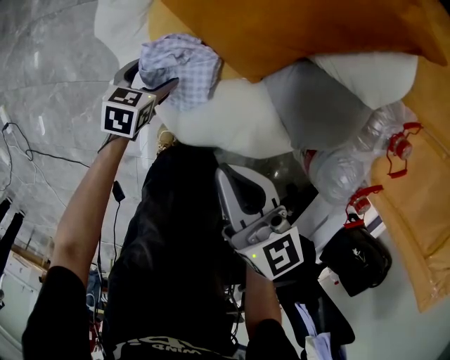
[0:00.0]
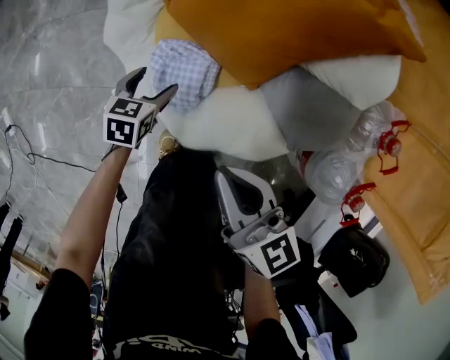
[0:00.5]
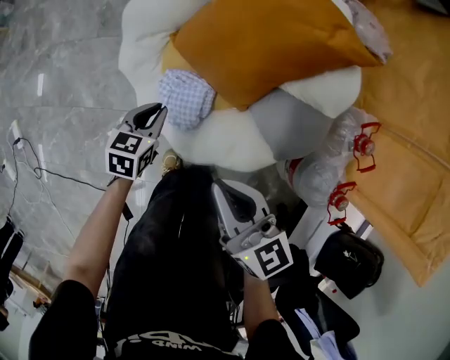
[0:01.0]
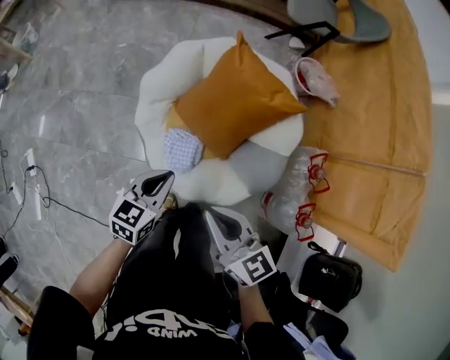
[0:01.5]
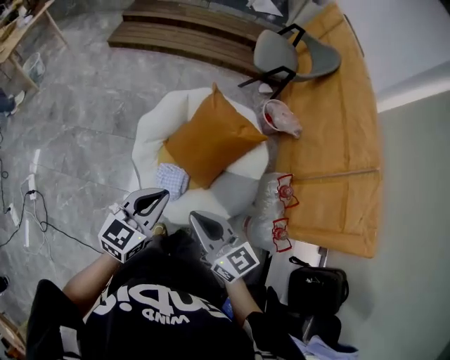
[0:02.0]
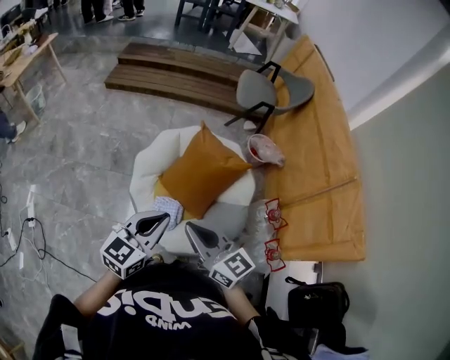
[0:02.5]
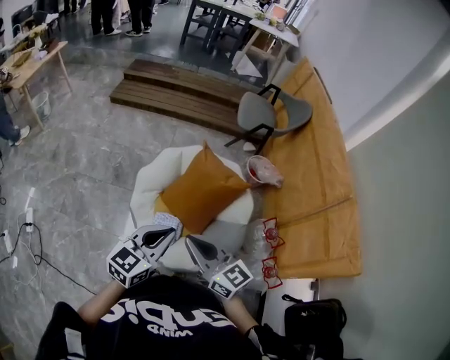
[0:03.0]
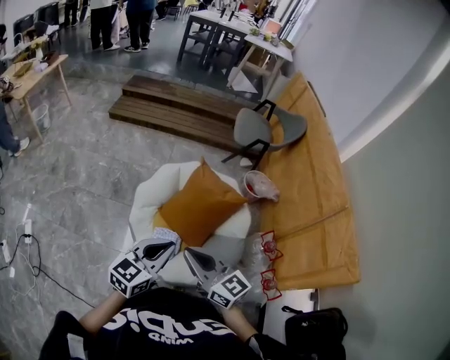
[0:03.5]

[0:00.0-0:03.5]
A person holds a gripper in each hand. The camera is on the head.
0:00.0 to 0:02.0: The right gripper goes roughly 50 cm upward, and swivels about 20 degrees; the left gripper is displaced upward by some 70 cm, angles its fingers upward, by roughly 40 degrees, and closes its fingers.
0:02.0 to 0:03.5: The left gripper moves upward and backward, about 10 cm, while the right gripper travels upward by about 5 cm.

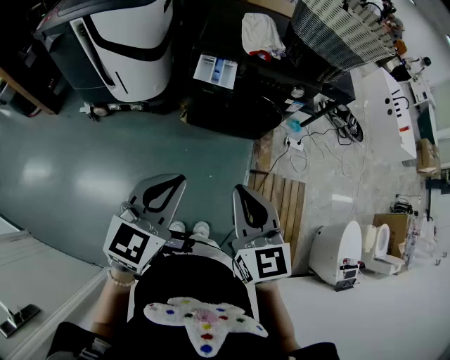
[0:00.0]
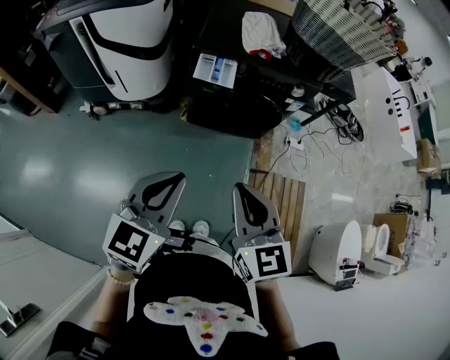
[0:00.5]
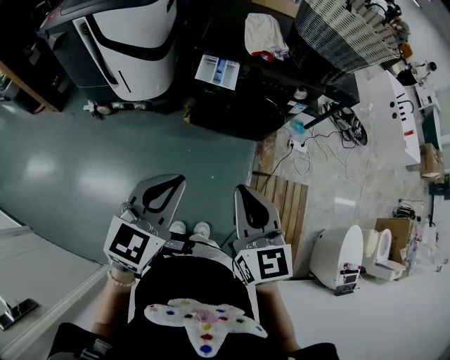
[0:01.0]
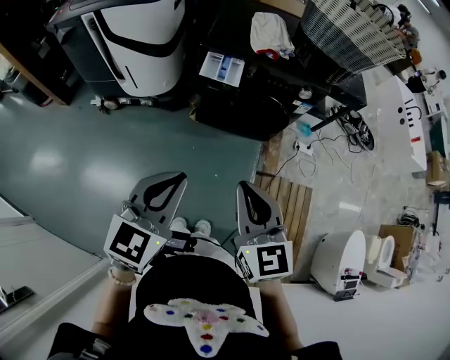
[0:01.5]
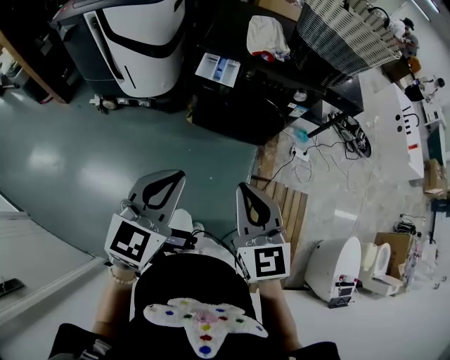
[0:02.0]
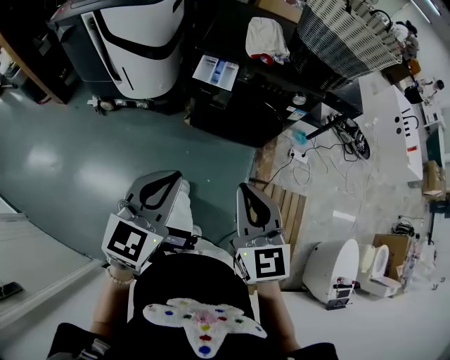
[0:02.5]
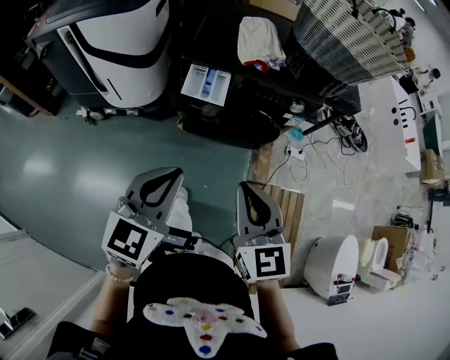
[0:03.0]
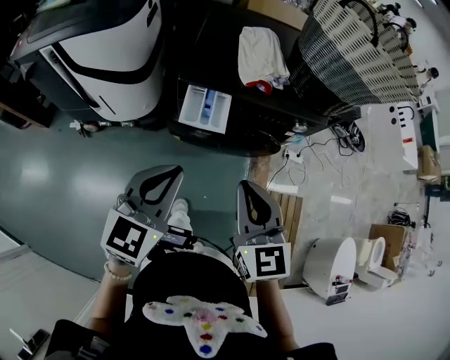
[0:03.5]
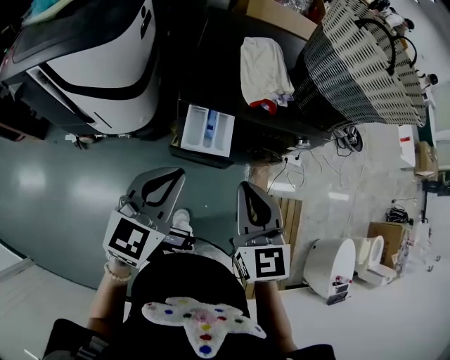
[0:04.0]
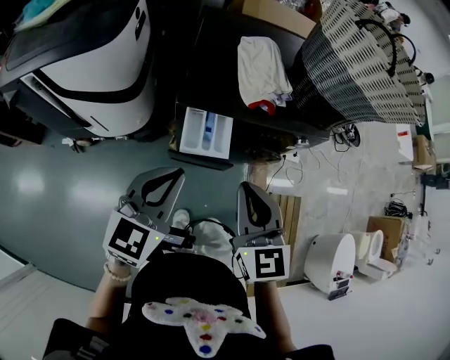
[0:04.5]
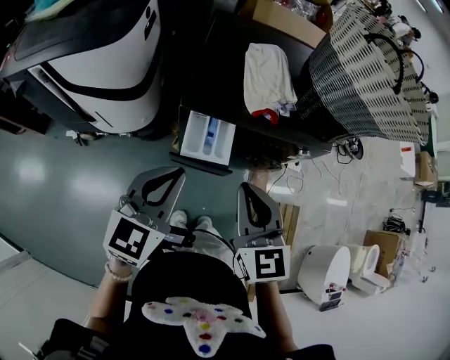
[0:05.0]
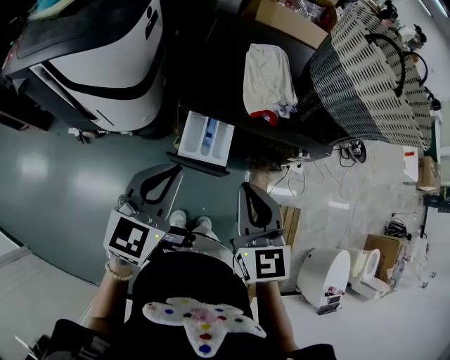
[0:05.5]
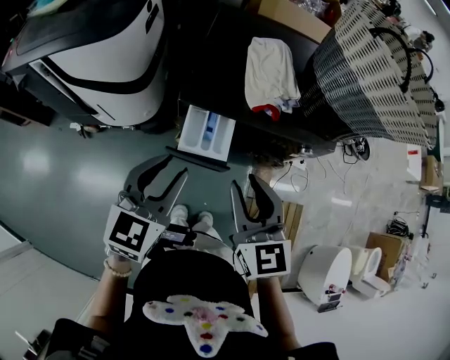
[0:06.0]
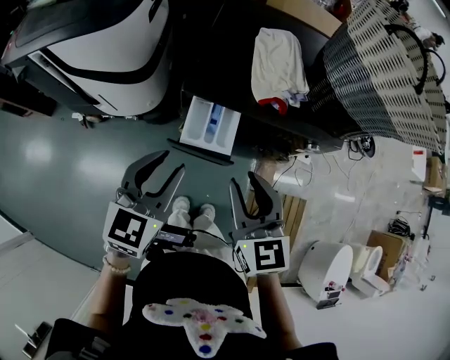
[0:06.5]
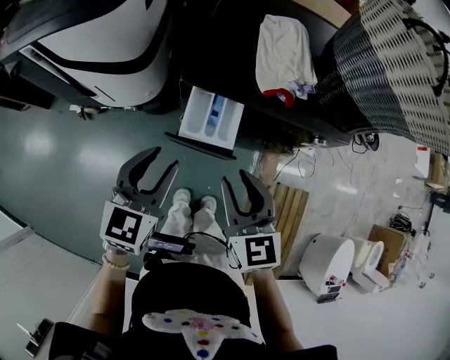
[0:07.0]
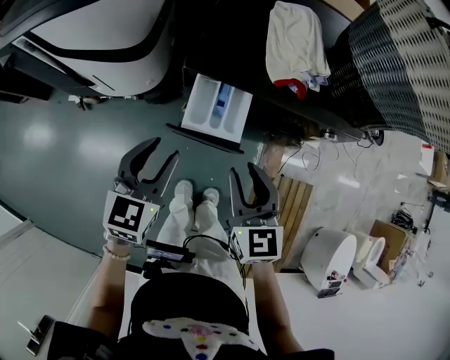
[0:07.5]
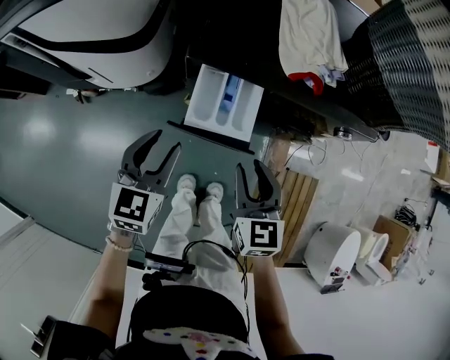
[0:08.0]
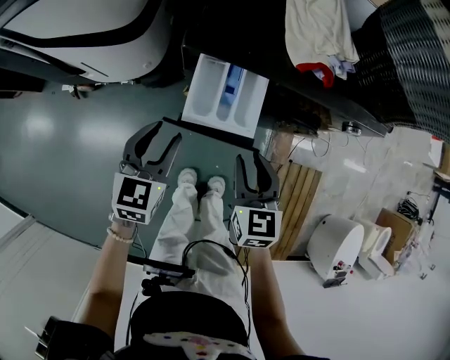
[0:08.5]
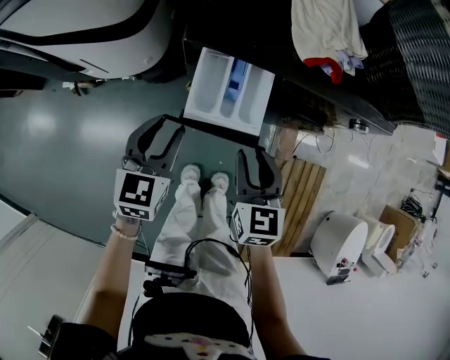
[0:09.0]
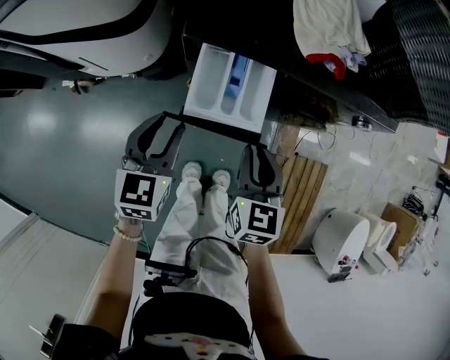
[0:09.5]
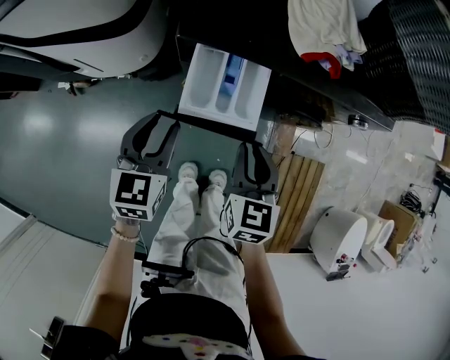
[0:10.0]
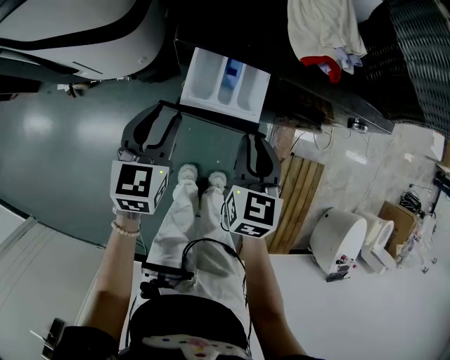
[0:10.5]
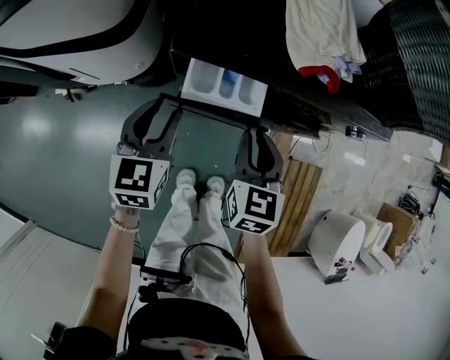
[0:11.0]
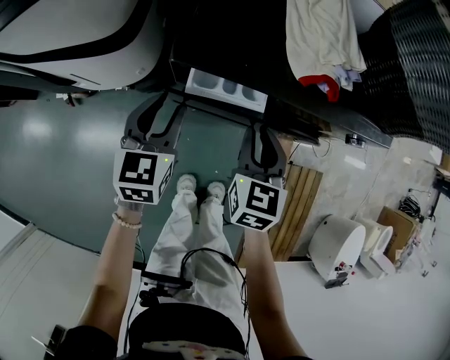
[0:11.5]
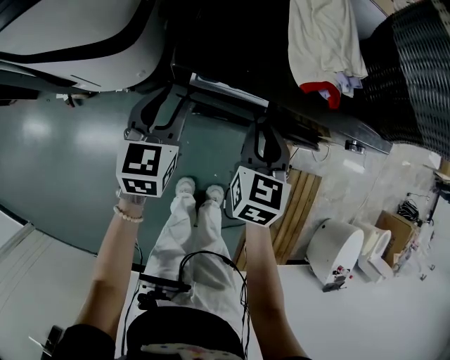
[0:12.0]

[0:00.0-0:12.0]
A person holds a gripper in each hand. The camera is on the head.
0:00.0 to 0:02.0: The right gripper shifts approximately 5 cm to the right.
0:02.0 to 0:04.0: The two grippers go about 30 cm forward.
0:04.0 to 0:06.0: The left gripper opens up; the right gripper opens.
0:06.0 to 0:08.0: Both grippers move downward, roughly 20 cm.
0:08.0 to 0:10.0: Both grippers move downward, approximately 5 cm.
0:10.0 to 0:12.0: The grippers both shift forward by about 10 cm.

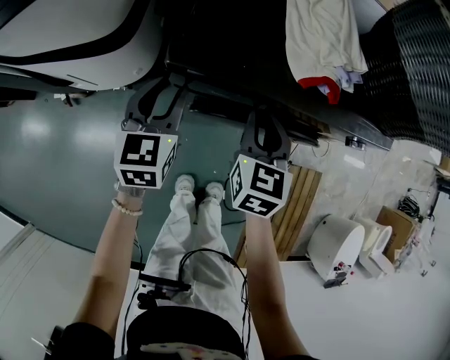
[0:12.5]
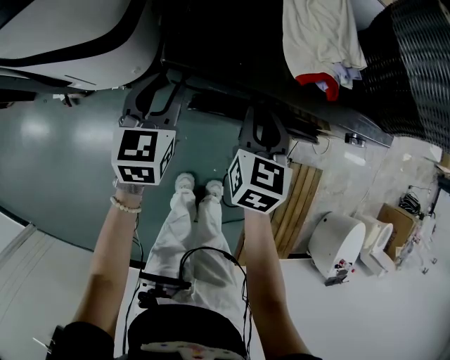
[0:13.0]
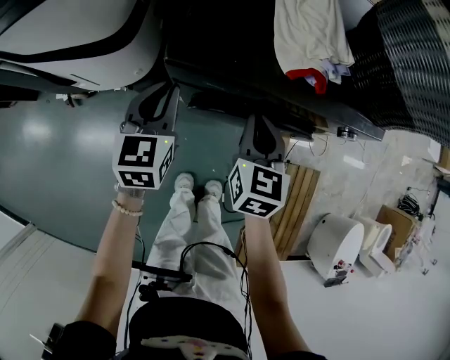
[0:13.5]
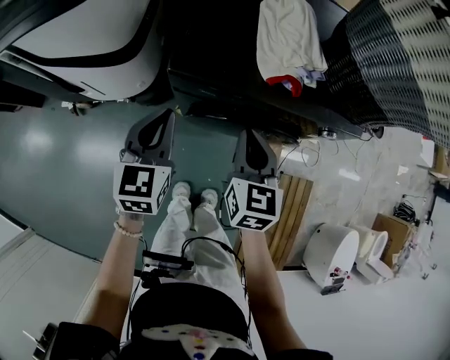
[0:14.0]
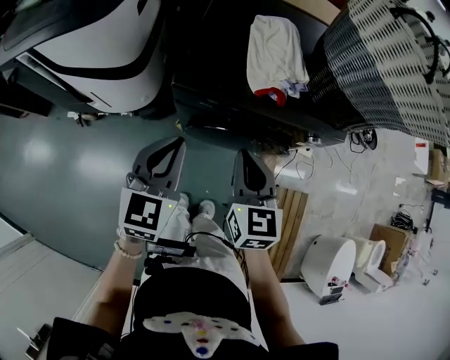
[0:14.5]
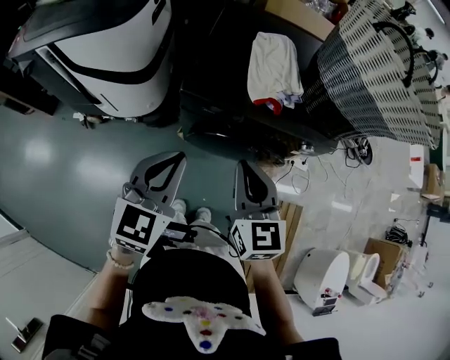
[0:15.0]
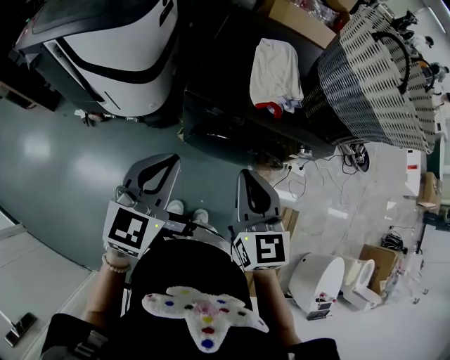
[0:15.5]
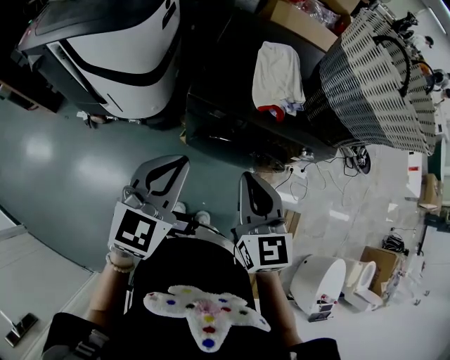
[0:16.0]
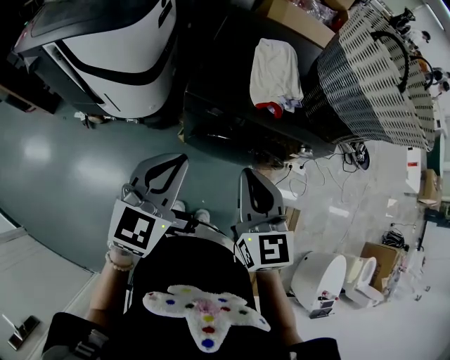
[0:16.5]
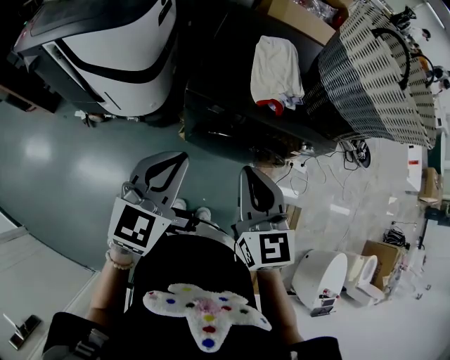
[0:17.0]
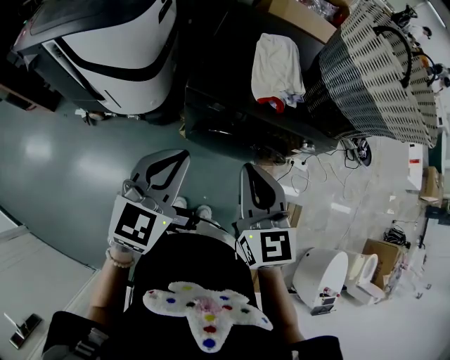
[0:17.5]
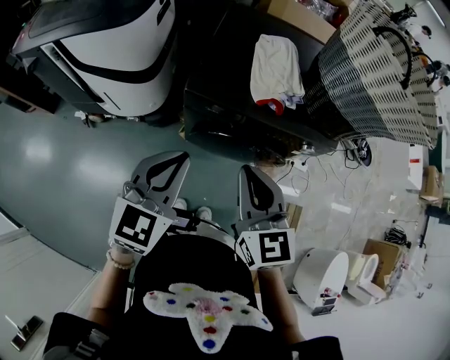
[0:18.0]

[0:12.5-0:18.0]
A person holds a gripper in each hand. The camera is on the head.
0:12.5 to 0:14.5: The left gripper travels upward, backward and to the right by approximately 25 cm, and closes. Meanwhile the right gripper shifts some 20 cm upward and backward.
0:14.5 to 0:16.0: Both grippers move upward and backward, roughly 10 cm.
0:16.0 to 0:18.0: The two grippers keep their place.

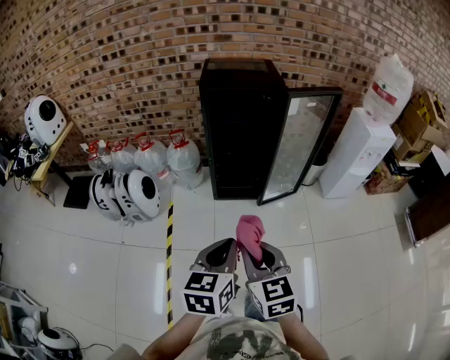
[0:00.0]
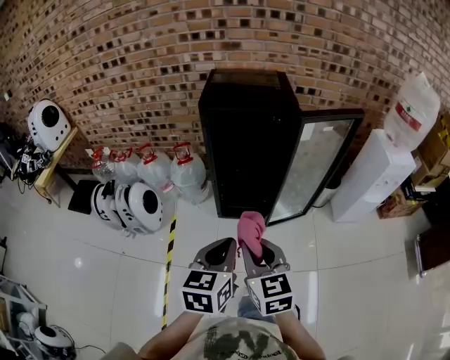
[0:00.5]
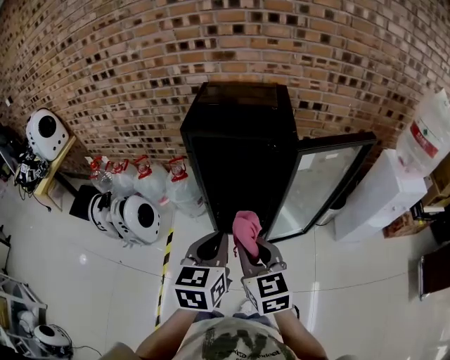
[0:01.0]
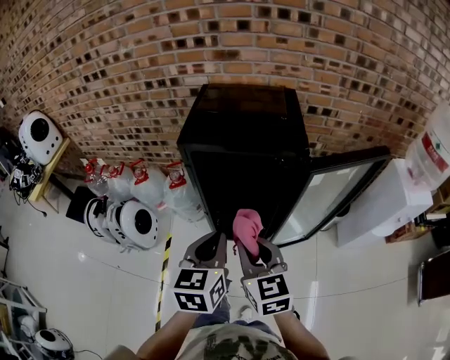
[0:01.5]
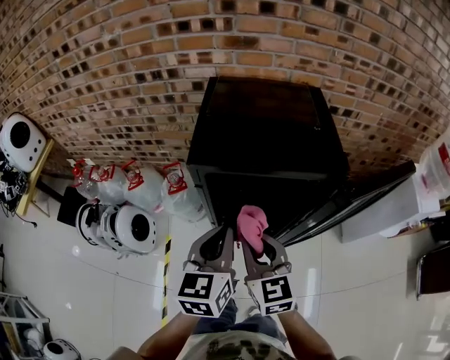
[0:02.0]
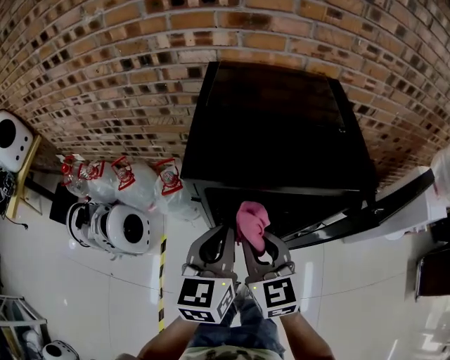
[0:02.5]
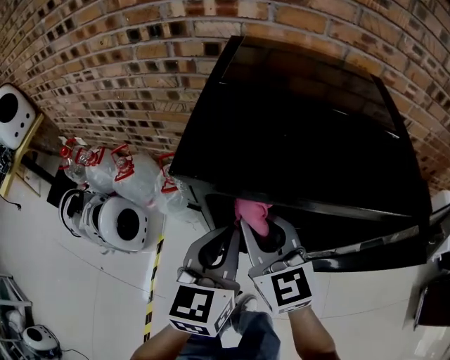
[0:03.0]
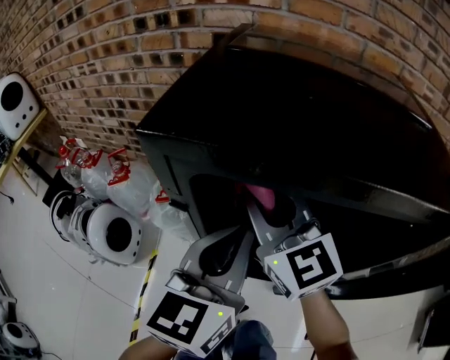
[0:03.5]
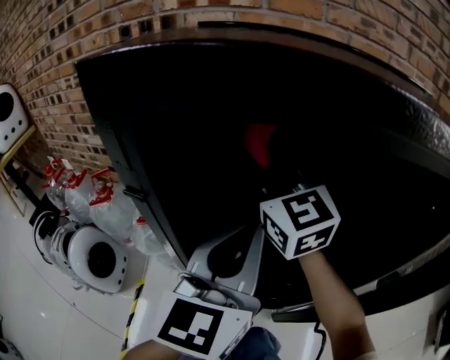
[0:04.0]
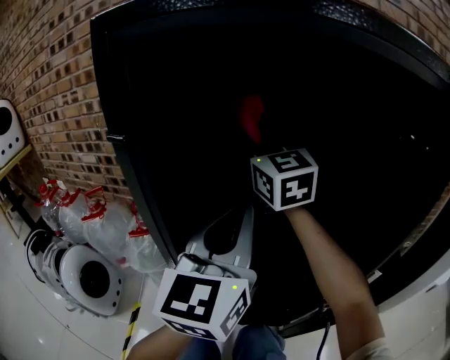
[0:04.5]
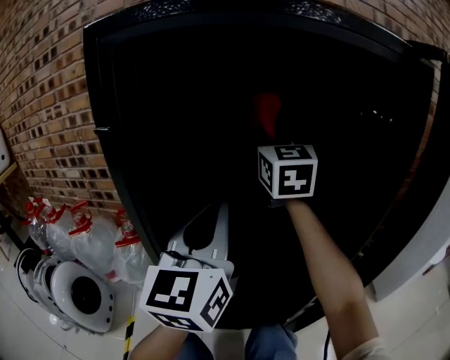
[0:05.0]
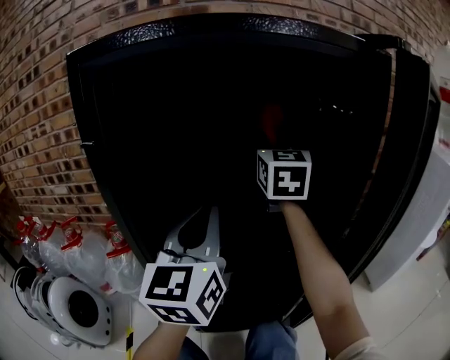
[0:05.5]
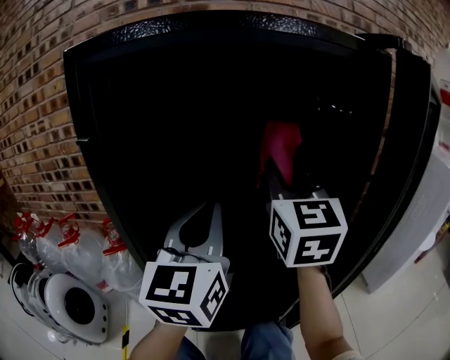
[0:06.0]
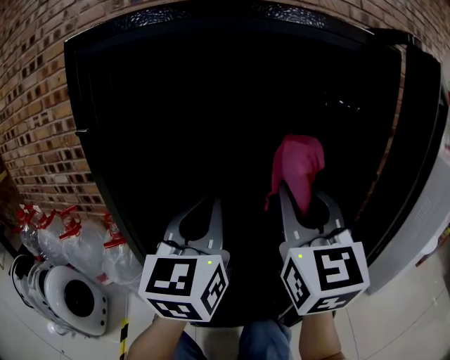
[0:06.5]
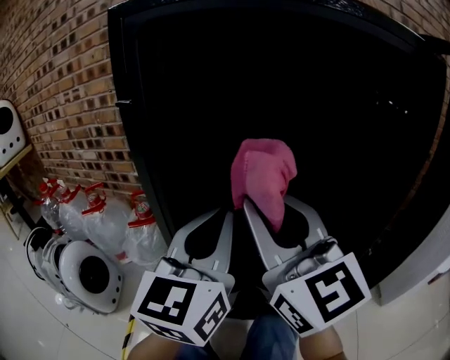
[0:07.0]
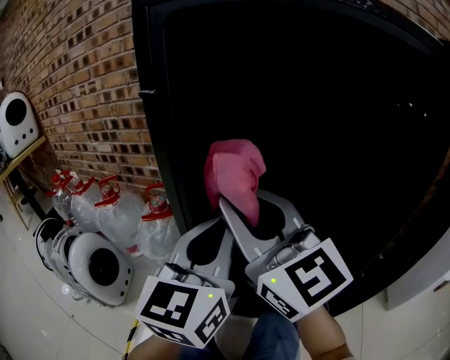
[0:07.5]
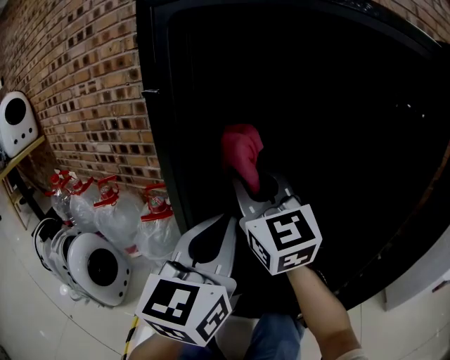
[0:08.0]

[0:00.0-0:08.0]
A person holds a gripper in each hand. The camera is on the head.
0:00.0 to 0:02.0: The pair of grippers is taken forward, roughly 50 cm.
0:02.0 to 0:04.0: The right gripper goes some 30 cm forward, and rotates some 30 degrees. Meanwhile the left gripper travels forward and downward by about 20 cm, and rotates approximately 20 degrees.
0:04.0 to 0:06.0: The right gripper heads to the right, covering roughly 20 cm, and changes its angle by approximately 30 degrees.
0:06.0 to 0:08.0: The right gripper shifts by some 20 cm, and turns by about 30 degrees, while the left gripper shifts by some 10 cm.
